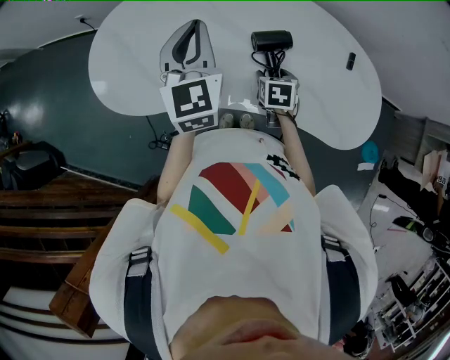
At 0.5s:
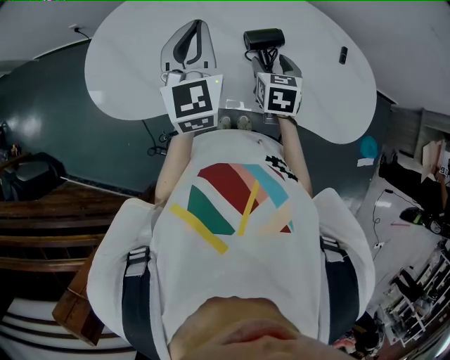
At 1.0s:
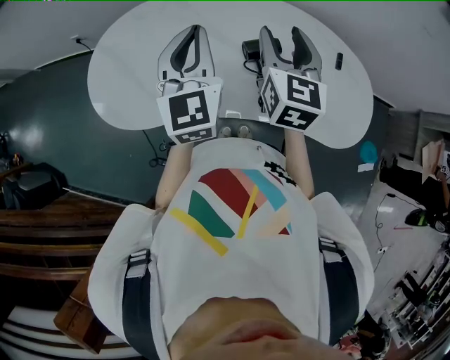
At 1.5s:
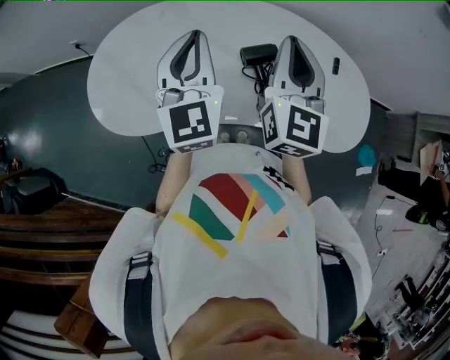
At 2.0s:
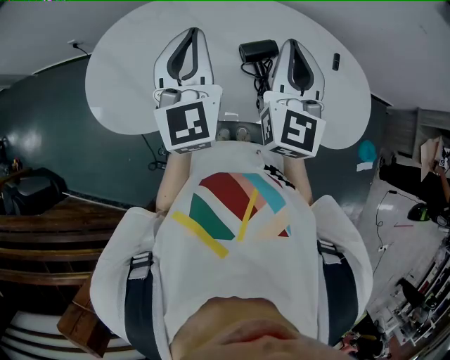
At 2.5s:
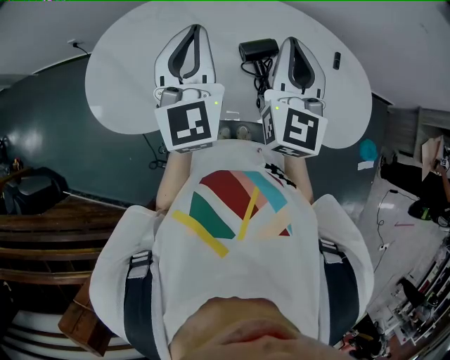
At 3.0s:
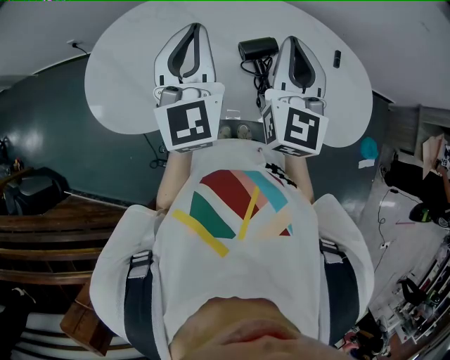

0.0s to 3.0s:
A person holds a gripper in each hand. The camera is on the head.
0.0s to 1.5s: The left gripper is displaced upward by approximately 5 cm. The right gripper goes roughly 35 cm upward, angles its fingers upward, by approximately 60 degrees, and closes up.
1.5s to 3.0s: The grippers stay close to where they were, moving slightly.

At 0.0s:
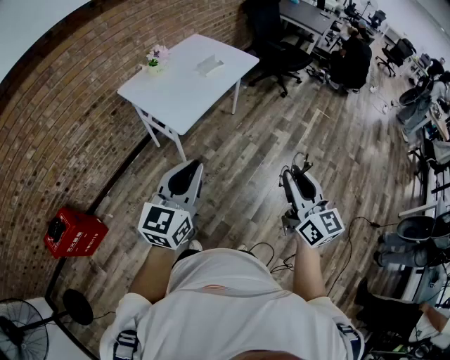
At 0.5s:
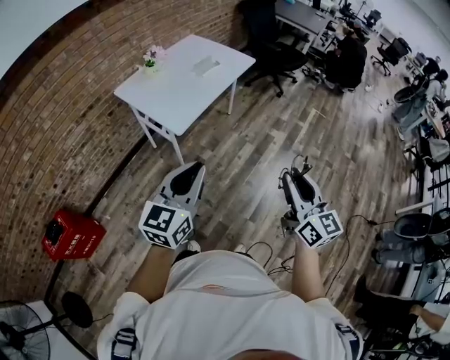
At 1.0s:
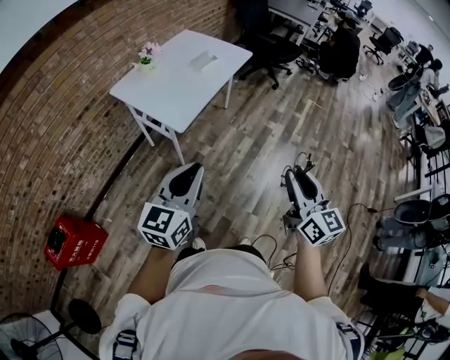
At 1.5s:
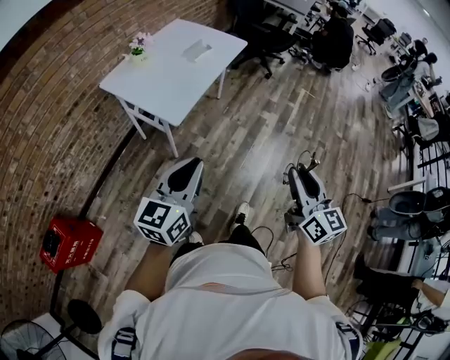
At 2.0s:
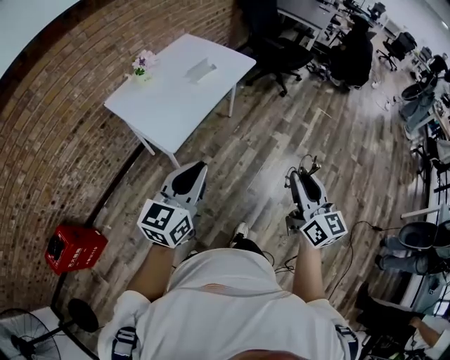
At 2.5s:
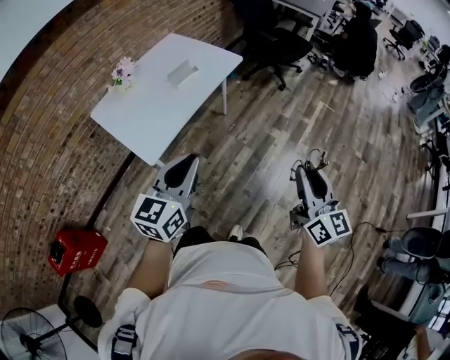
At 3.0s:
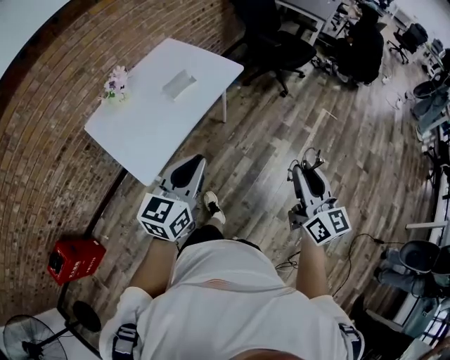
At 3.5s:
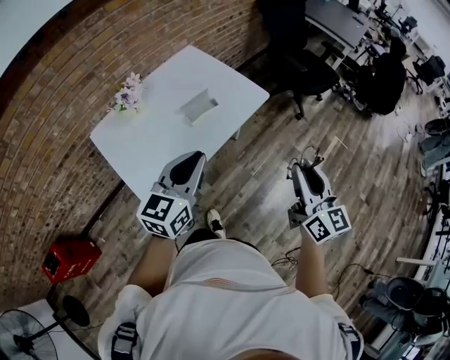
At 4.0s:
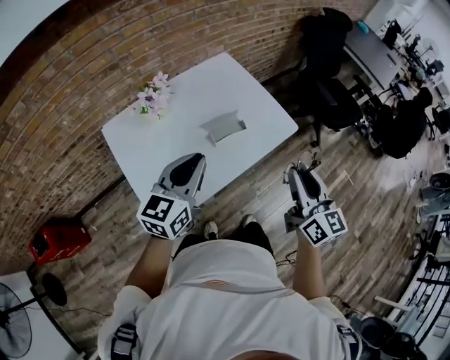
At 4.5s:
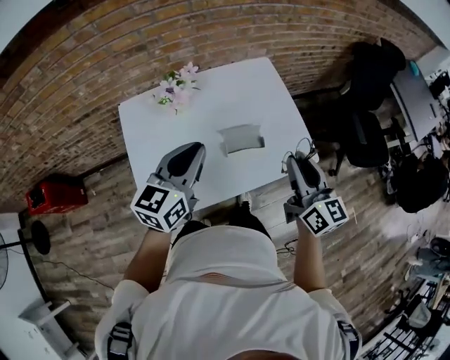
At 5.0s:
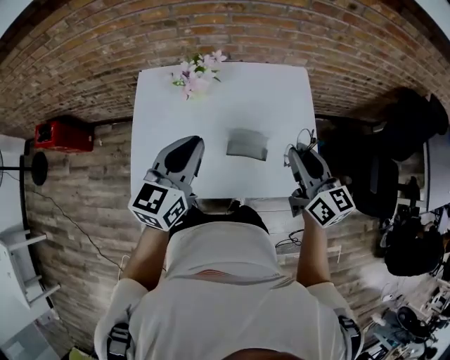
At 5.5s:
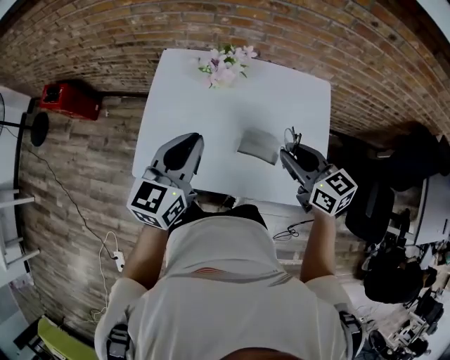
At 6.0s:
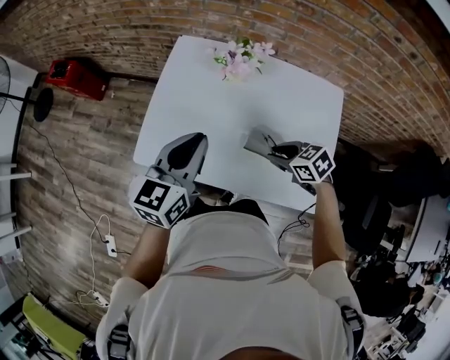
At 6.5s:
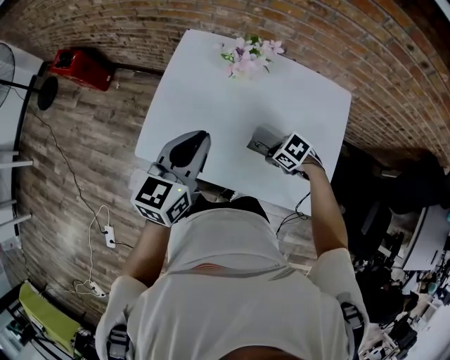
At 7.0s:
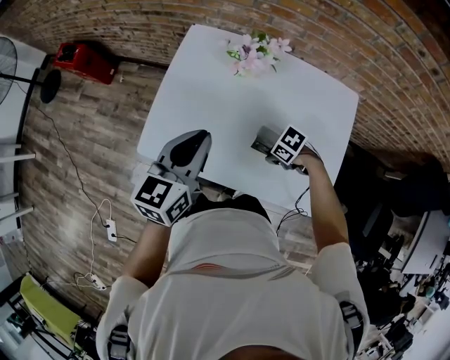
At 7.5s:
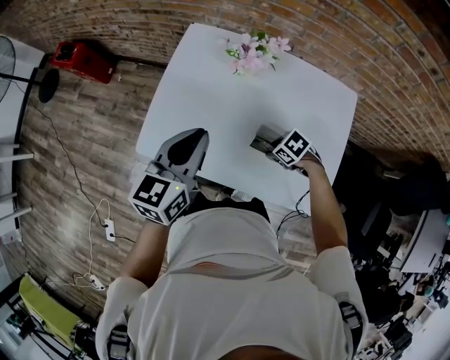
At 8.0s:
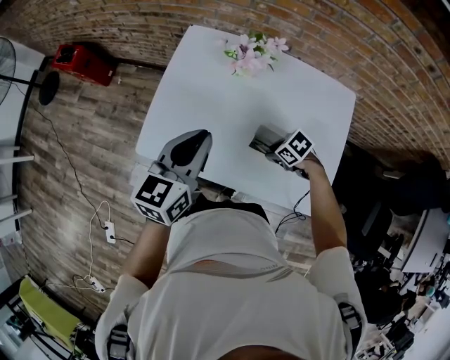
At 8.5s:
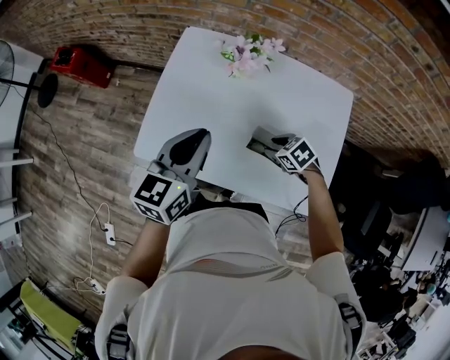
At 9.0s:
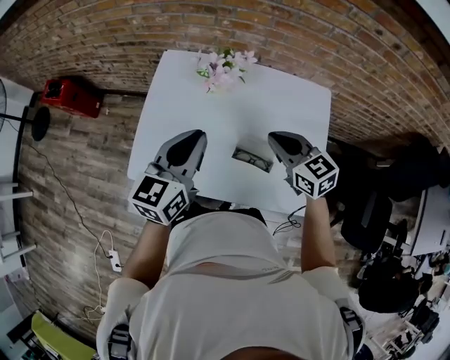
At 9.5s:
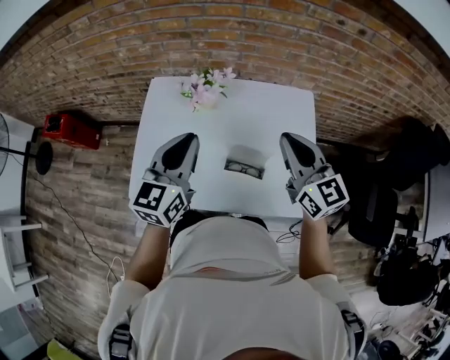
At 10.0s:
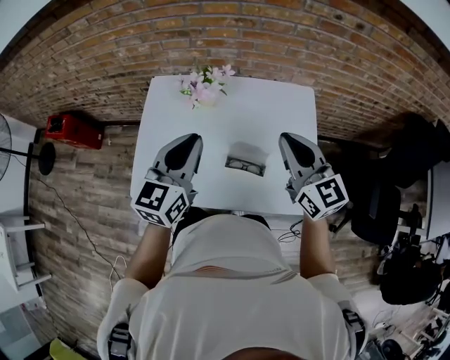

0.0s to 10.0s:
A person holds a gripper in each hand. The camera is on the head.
0.0s to 2.0s: Both grippers travel together forward, roughly 10 cm.
2.0s to 4.0s: Both grippers are carried forward, about 50 cm.
4.0s to 6.0s: The left gripper moves roughly 10 cm, and swivels some 50 degrees. Meanwhile the right gripper moves some 35 cm, and angles its fingers downward, by some 50 degrees.
6.0s to 8.0s: The right gripper shifts about 10 cm downward, and changes its angle by approximately 20 degrees.
8.0s to 10.0s: The right gripper travels upward by some 35 cm, tips its fingers upward by roughly 60 degrees, and closes up; the left gripper ends up about 10 cm from where it was.

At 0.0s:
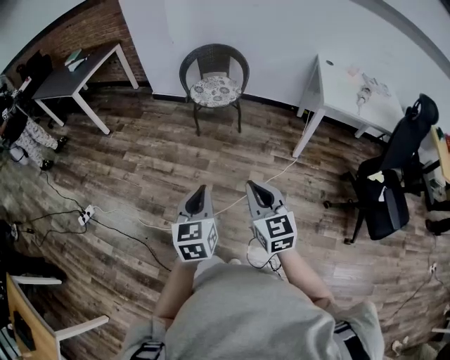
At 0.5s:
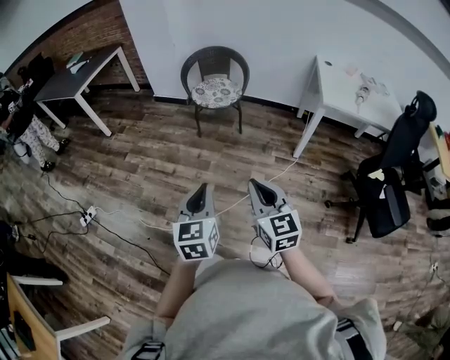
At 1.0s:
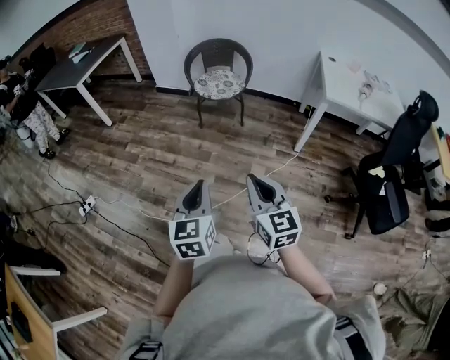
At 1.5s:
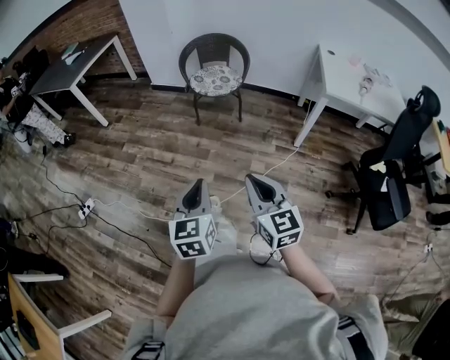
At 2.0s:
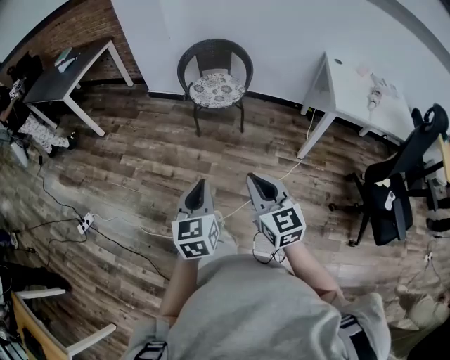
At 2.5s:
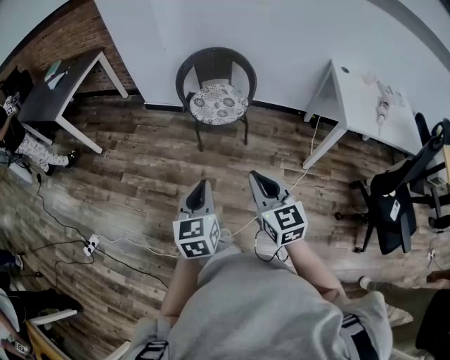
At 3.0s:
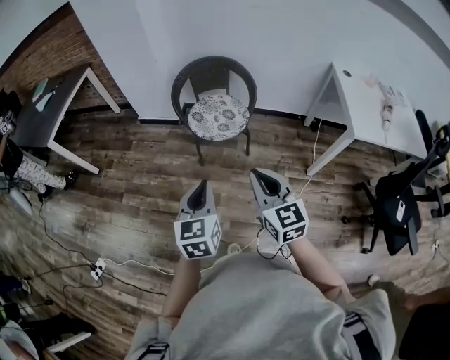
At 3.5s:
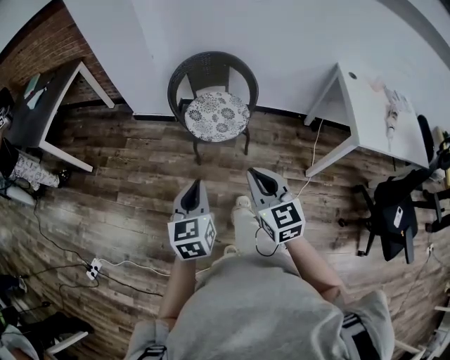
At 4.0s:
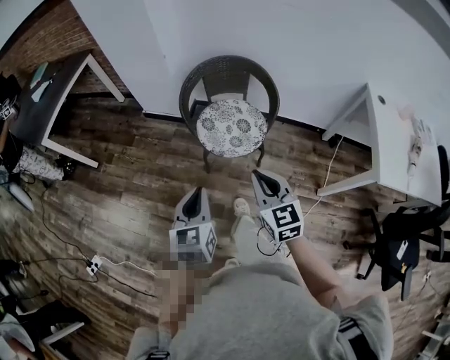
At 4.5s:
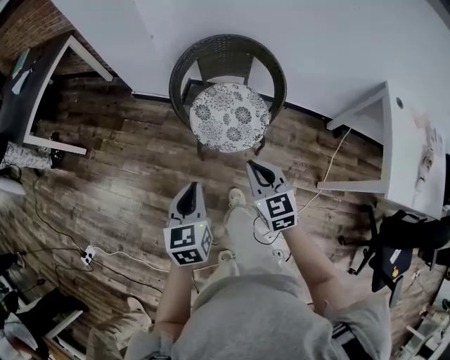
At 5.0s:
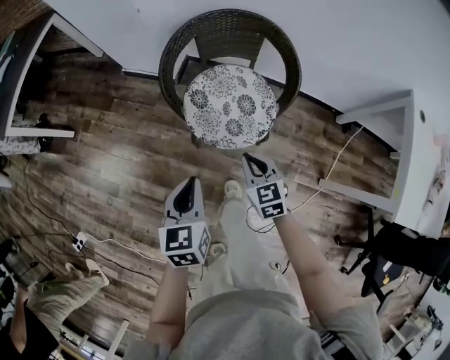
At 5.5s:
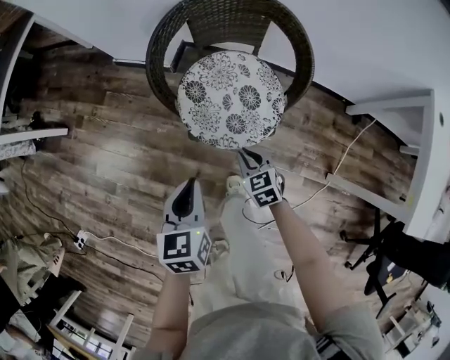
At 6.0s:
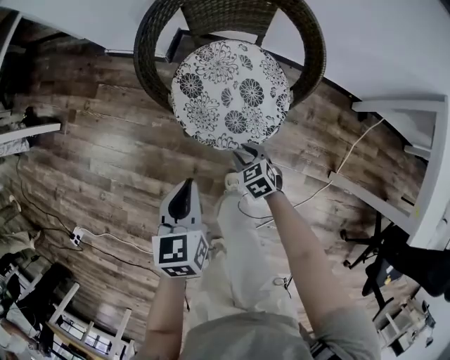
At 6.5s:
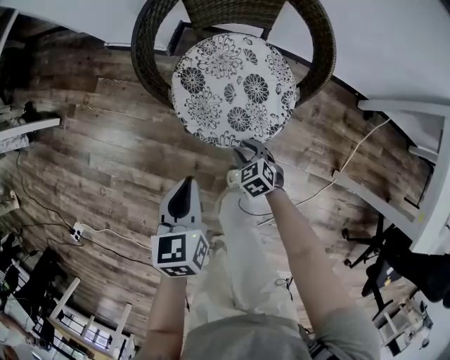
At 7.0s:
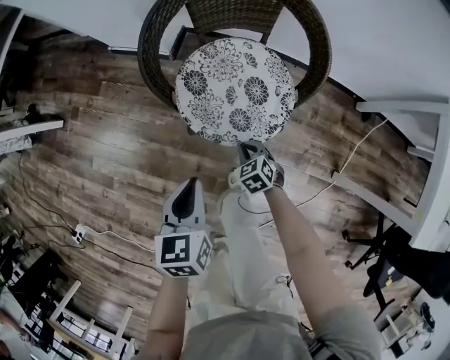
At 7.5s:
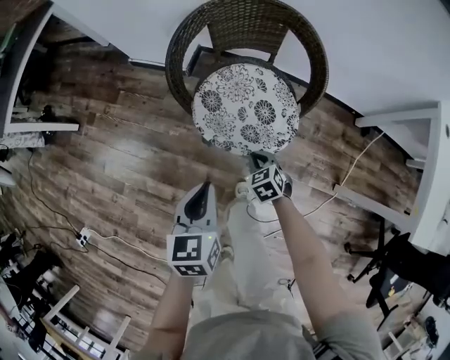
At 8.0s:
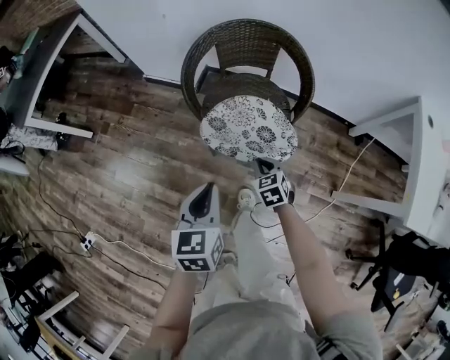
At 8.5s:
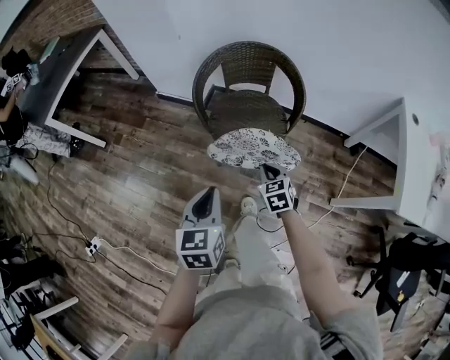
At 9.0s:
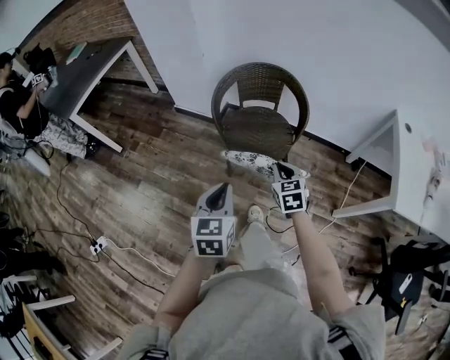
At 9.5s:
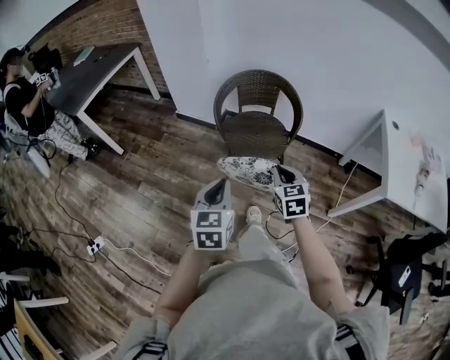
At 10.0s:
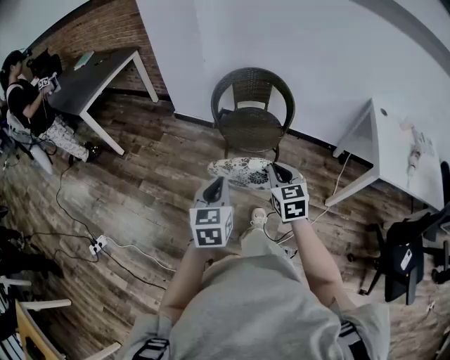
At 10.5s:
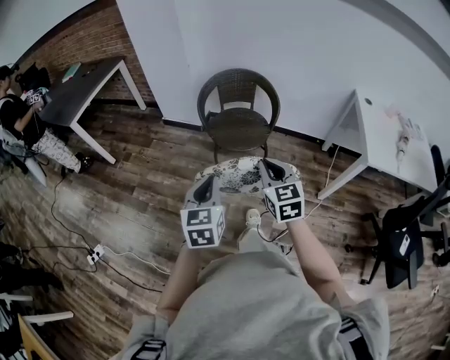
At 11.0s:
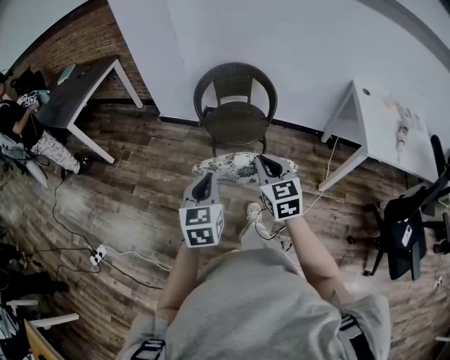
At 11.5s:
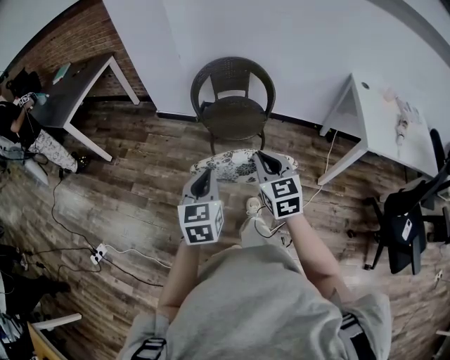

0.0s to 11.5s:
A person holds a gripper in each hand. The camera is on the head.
0.0s to 2.0s: Both grippers travel together forward, approximately 10 cm.
2.0s to 4.0s: Both grippers are carried forward, about 50 cm.
4.0s to 6.0s: The right gripper travels downward and forward by about 50 cm, tips its fingers downward by some 40 degrees, and opens up, while the left gripper heads downward and forward, covering some 35 cm.
6.0s to 7.5s: The two grippers go some 5 cm upward. The right gripper closes.
7.5s to 9.5s: The left gripper heads backward and upward, covering about 35 cm. Meanwhile the right gripper heads upward and backward, covering about 50 cm, and swivels some 30 degrees.
9.5s to 11.5s: The left gripper shifts approximately 10 cm backward, while the right gripper shifts approximately 15 cm backward and upward.

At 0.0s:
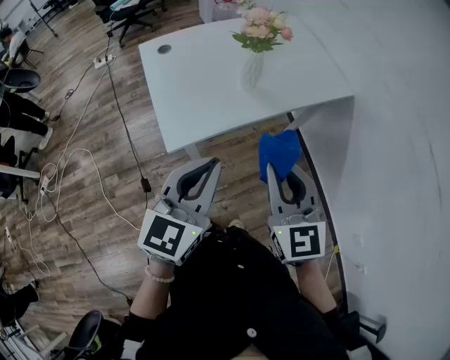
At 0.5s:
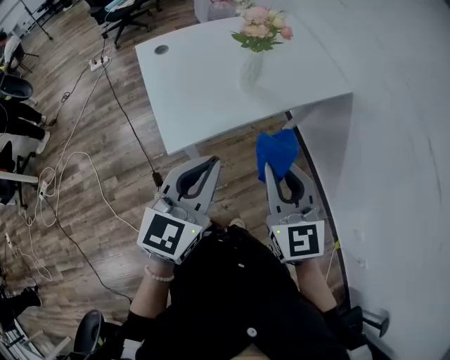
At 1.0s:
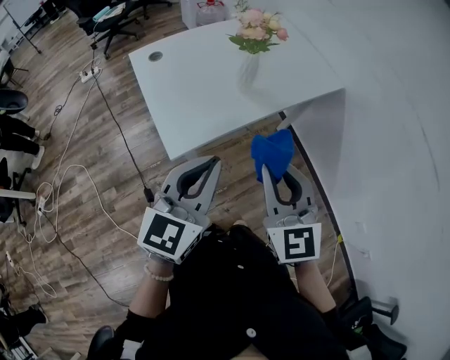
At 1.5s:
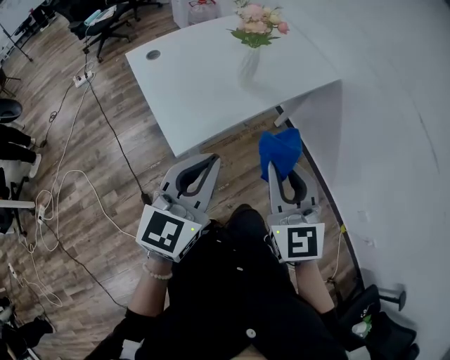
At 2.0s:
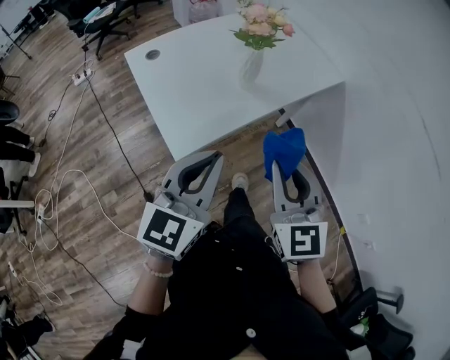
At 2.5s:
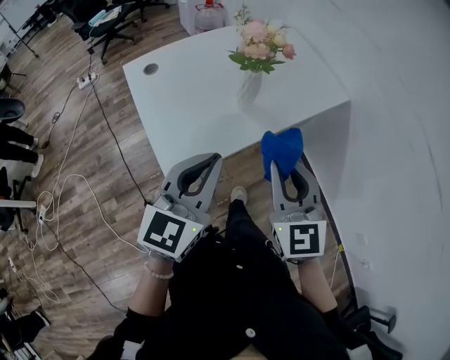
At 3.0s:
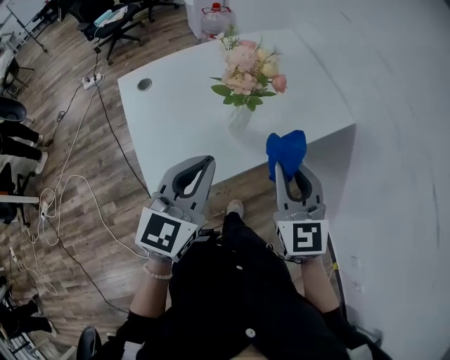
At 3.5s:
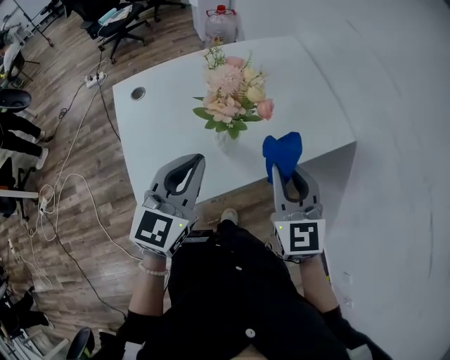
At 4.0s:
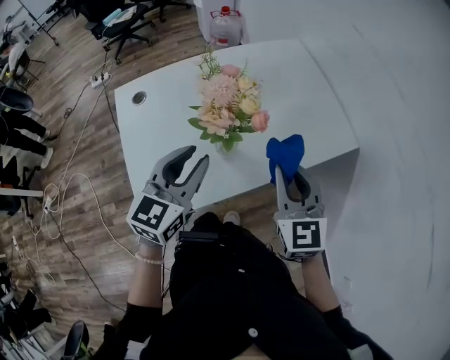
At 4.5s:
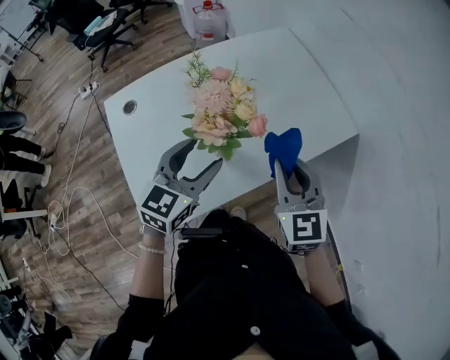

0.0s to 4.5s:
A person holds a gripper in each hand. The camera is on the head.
0.0s to 2.0s: The left gripper shifts some 5 cm to the left.
2.0s to 4.5s: The two grippers go some 35 cm forward. The left gripper opens.
